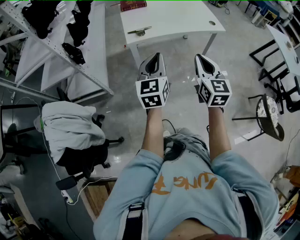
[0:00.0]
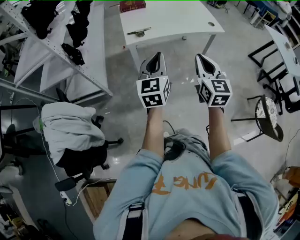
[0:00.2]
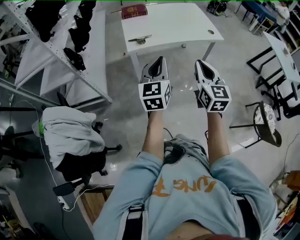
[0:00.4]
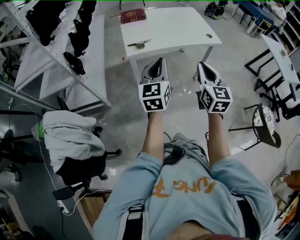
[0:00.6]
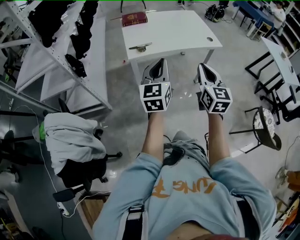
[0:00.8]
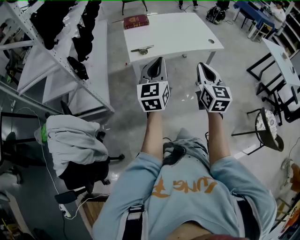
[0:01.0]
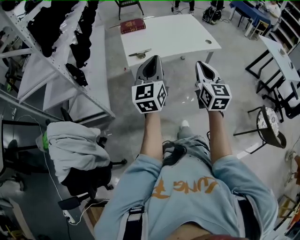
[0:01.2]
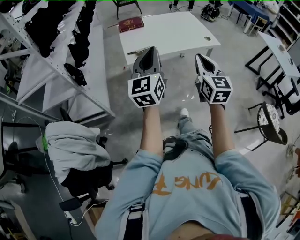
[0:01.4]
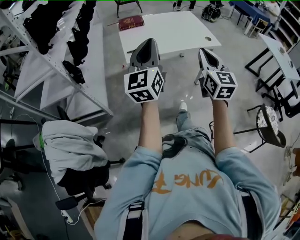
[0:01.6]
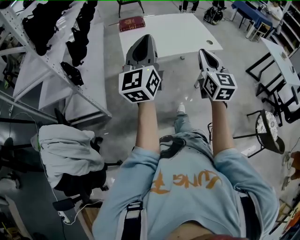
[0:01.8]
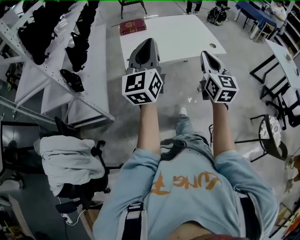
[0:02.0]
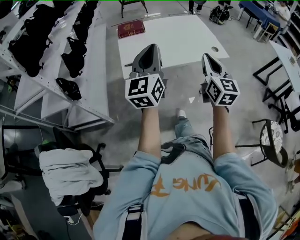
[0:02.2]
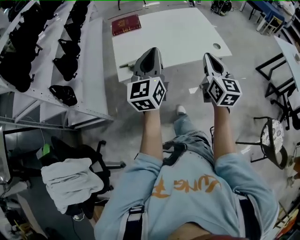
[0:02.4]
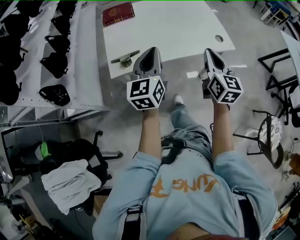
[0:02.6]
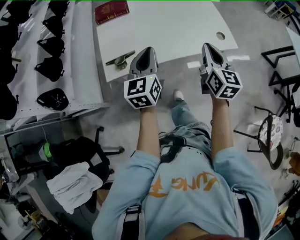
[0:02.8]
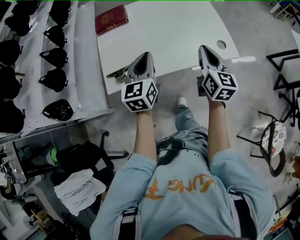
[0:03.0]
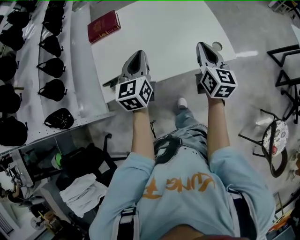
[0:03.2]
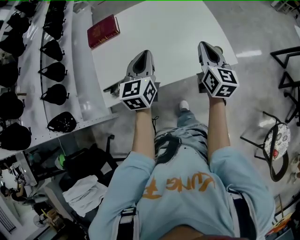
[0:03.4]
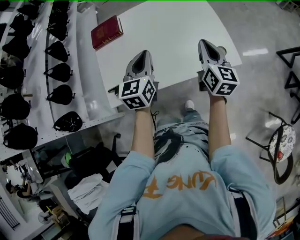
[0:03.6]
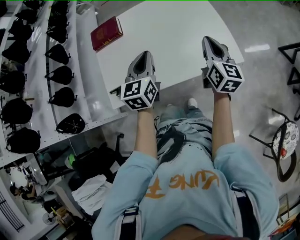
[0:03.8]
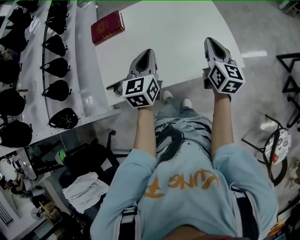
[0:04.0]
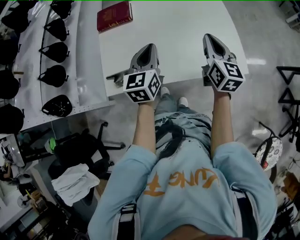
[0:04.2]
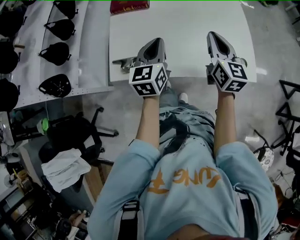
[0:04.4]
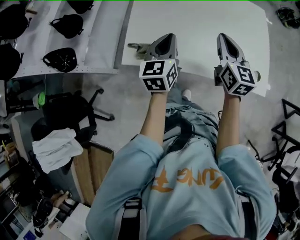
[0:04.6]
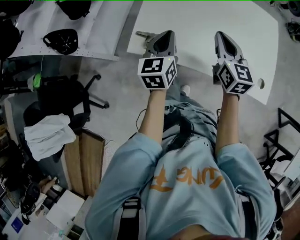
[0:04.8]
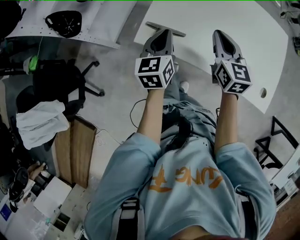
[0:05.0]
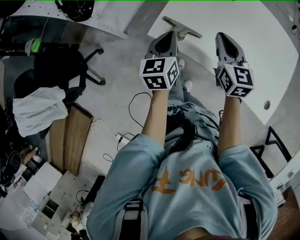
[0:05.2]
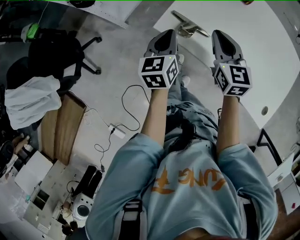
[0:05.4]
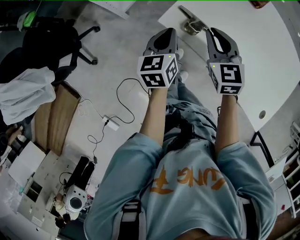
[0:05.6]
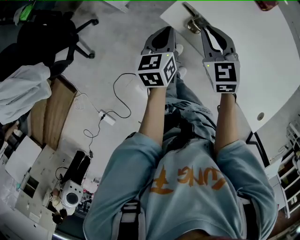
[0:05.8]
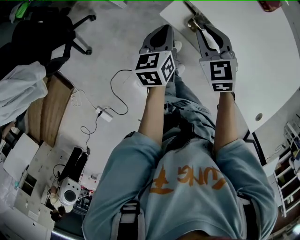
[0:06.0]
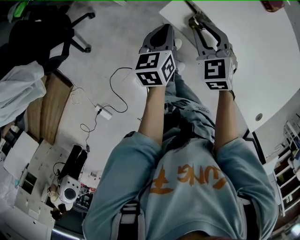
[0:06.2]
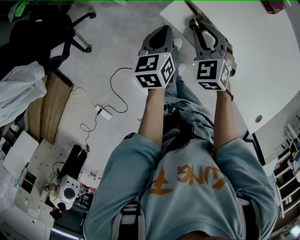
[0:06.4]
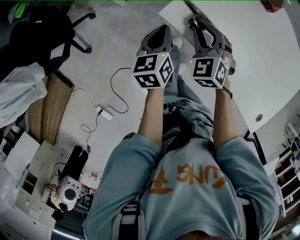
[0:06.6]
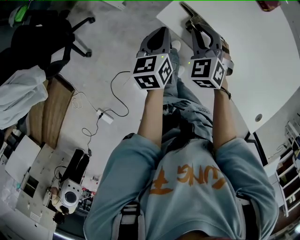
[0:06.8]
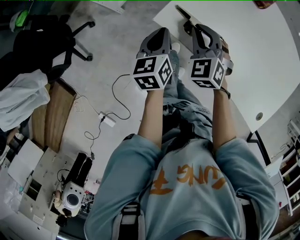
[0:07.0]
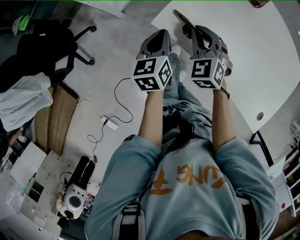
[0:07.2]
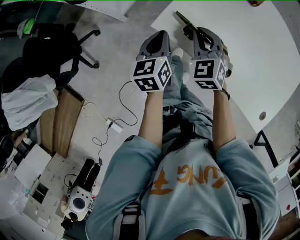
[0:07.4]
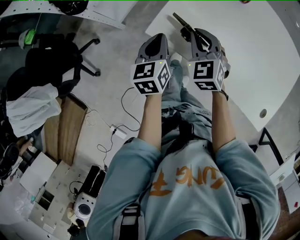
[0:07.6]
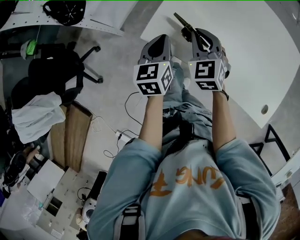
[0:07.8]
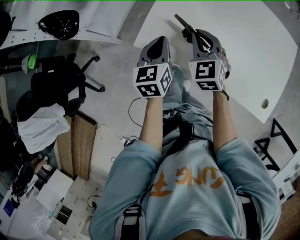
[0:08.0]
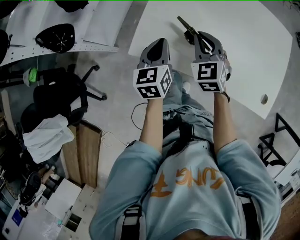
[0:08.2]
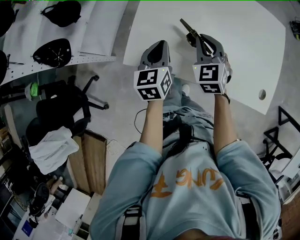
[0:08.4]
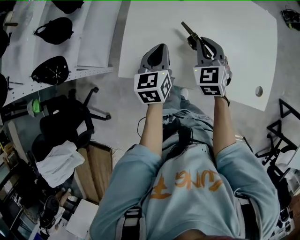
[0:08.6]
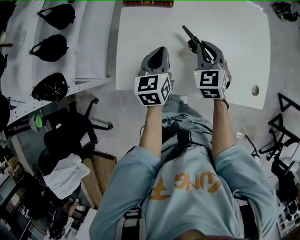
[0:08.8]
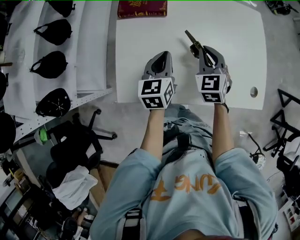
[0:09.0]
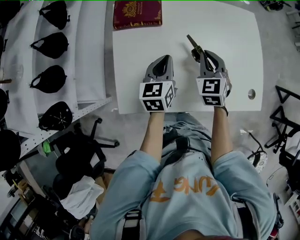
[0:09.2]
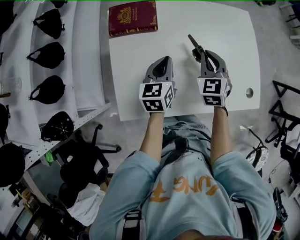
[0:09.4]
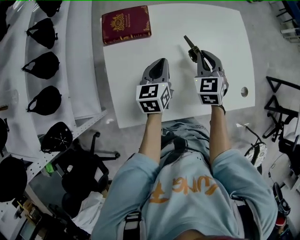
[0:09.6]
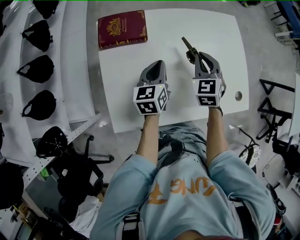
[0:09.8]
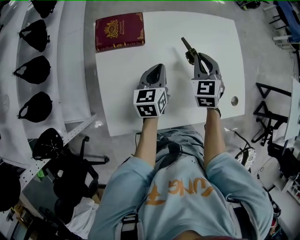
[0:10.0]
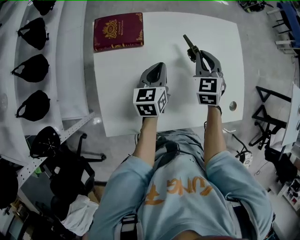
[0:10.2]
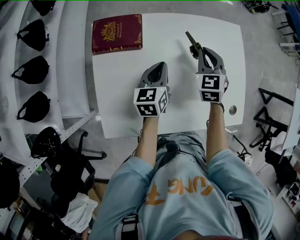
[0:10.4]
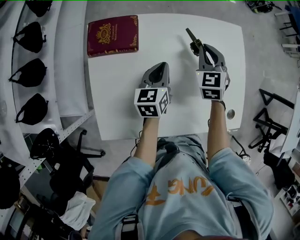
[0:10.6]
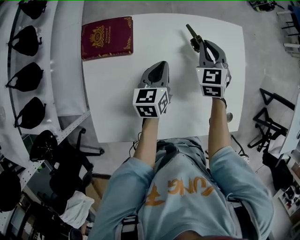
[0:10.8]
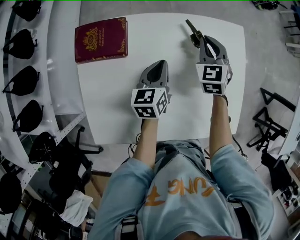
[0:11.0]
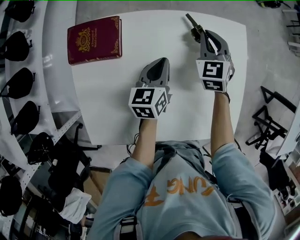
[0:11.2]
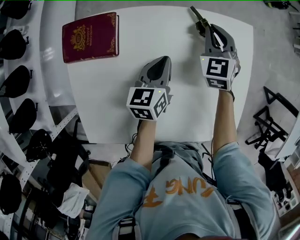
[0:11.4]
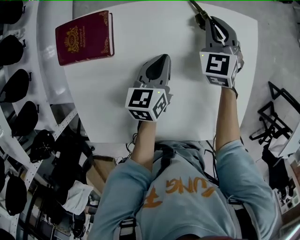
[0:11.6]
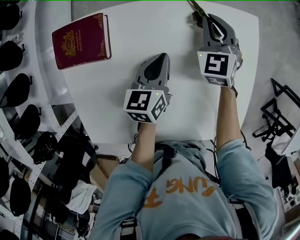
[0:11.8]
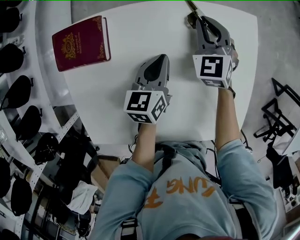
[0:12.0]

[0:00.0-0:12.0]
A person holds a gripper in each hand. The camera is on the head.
0:00.0 to 0:01.6: The right gripper travels forward and upward by roughly 10 cm, while the left gripper heads upward and forward, covering roughly 15 cm.
0:01.6 to 0:03.0: The right gripper travels forward by some 40 cm, and turns by about 20 degrees; the left gripper heads forward and downward, covering approximately 40 cm, and rotates roughly 30 degrees.
0:03.0 to 0:04.4: The left gripper travels forward by approximately 10 cm. The right gripper moves forward and to the left, some 15 cm.
0:04.4 to 0:06.0: The left gripper changes place by some 35 cm, and rotates about 50 degrees; the right gripper moves some 40 cm, and turns by roughly 70 degrees.
0:06.0 to 0:07.6: The right gripper moves roughly 5 cm. The left gripper shifts by roughly 5 cm.
0:07.6 to 0:09.0: The left gripper changes place by approximately 25 cm, and turns by about 40 degrees. The right gripper changes place by some 30 cm, and changes its angle by some 40 degrees.
0:09.0 to 0:10.4: Both grippers move forward, roughly 15 cm.
0:10.4 to 0:12.0: The left gripper moves forward, to the right and downward, about 15 cm. Meanwhile the right gripper travels forward and downward by roughly 20 cm.

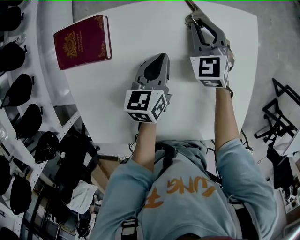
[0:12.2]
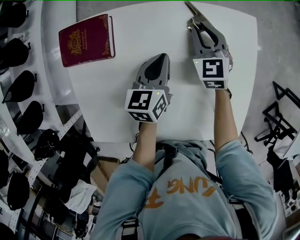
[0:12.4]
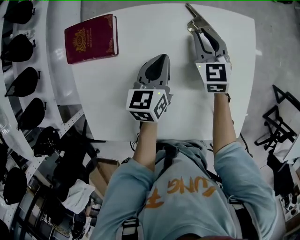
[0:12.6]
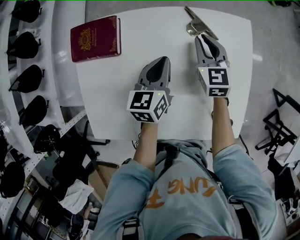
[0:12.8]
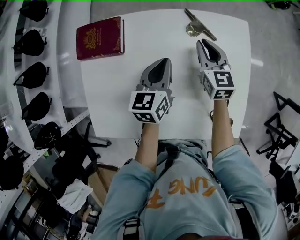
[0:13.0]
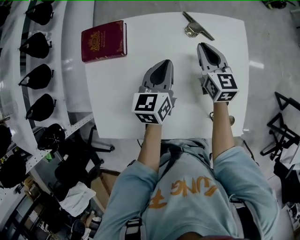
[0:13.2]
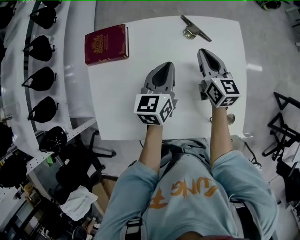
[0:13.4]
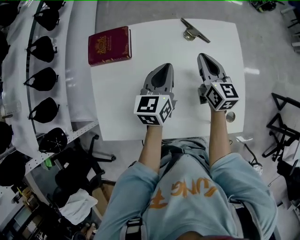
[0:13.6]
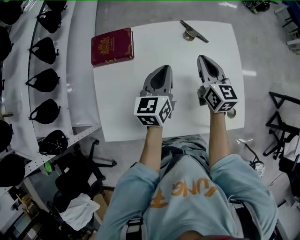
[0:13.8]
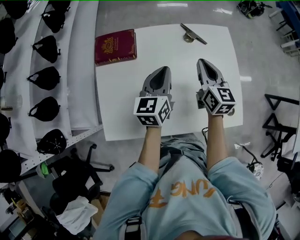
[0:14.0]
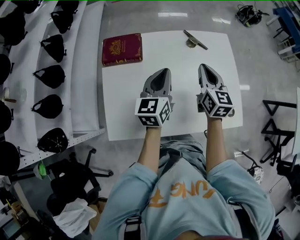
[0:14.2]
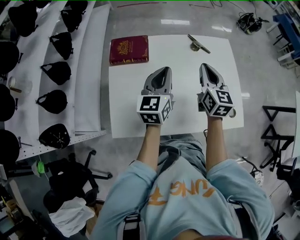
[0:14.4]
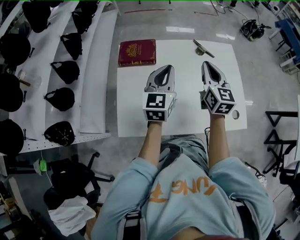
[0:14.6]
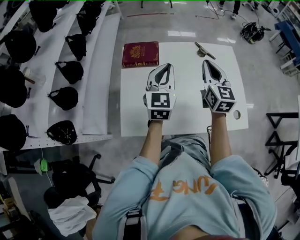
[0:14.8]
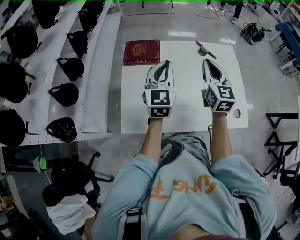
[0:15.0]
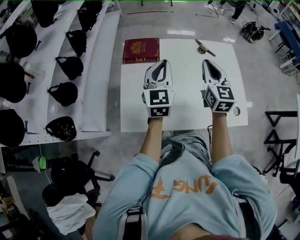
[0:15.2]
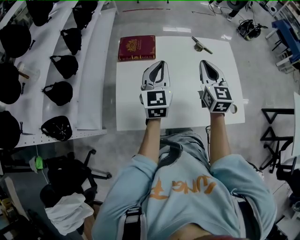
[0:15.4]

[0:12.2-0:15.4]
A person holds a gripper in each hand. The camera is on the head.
0:12.2 to 0:13.8: The right gripper travels backward and upward by roughly 20 cm, and rotates around the line of its fingers by approximately 40 degrees, clockwise from behind. Meanwhile the left gripper is displaced upward and backward by roughly 15 cm.
0:13.8 to 0:15.4: The right gripper moves backward, upward and to the left, roughly 15 cm; the left gripper is displaced to the left, upward and backward by about 20 cm, and changes its angle by roughly 30 degrees.

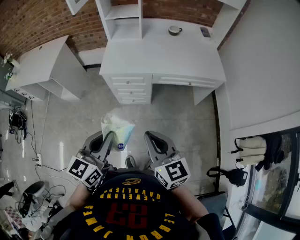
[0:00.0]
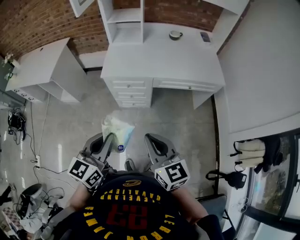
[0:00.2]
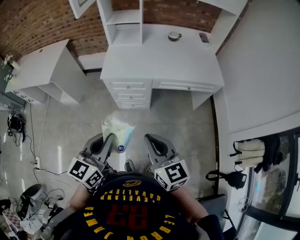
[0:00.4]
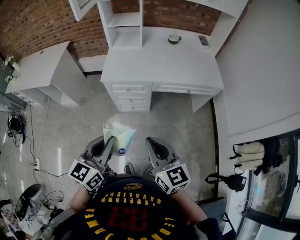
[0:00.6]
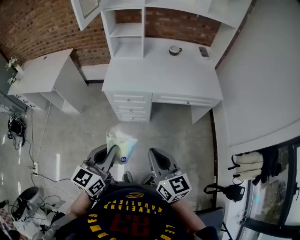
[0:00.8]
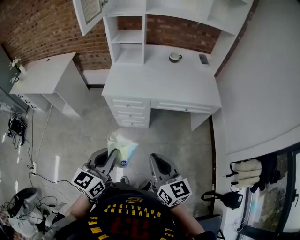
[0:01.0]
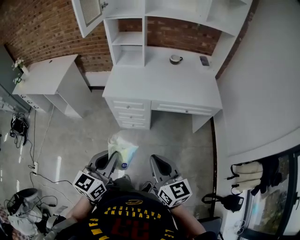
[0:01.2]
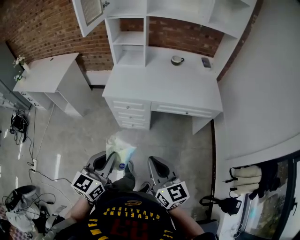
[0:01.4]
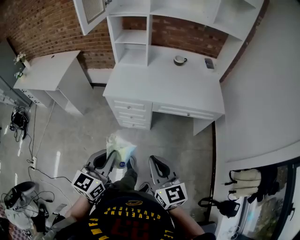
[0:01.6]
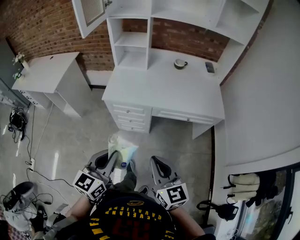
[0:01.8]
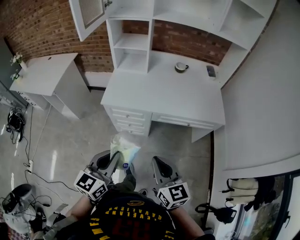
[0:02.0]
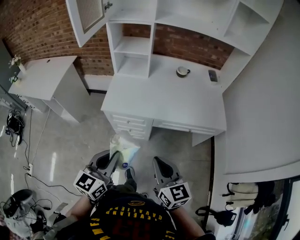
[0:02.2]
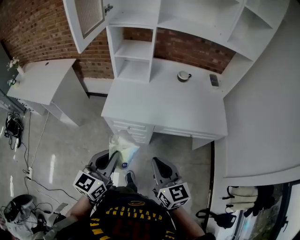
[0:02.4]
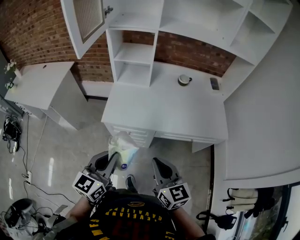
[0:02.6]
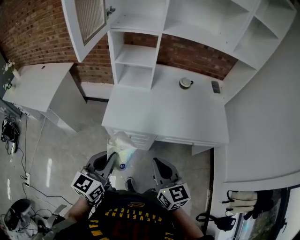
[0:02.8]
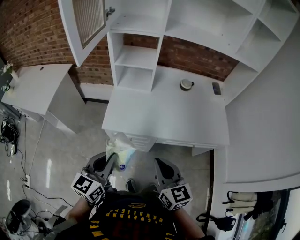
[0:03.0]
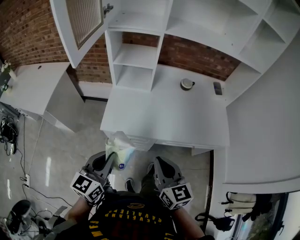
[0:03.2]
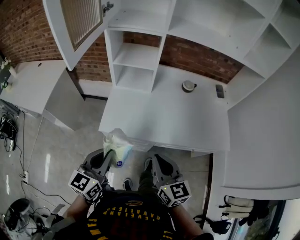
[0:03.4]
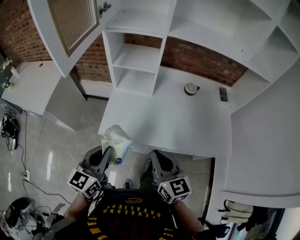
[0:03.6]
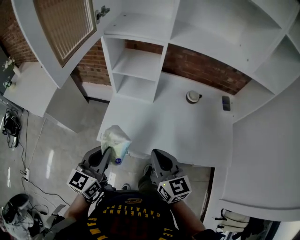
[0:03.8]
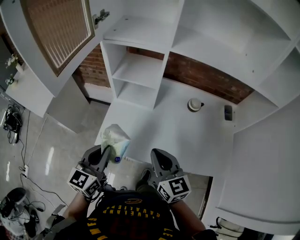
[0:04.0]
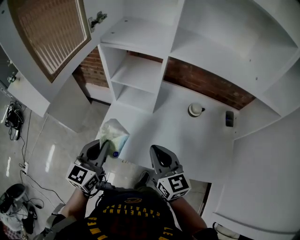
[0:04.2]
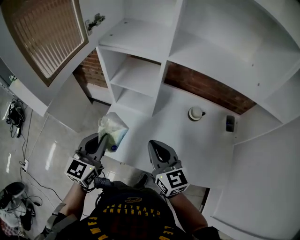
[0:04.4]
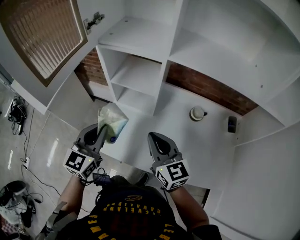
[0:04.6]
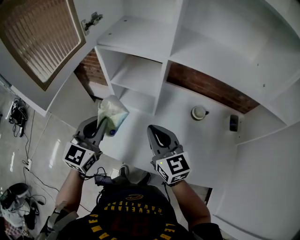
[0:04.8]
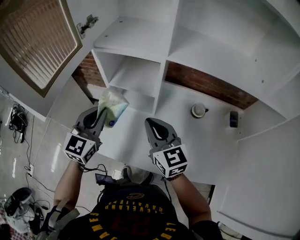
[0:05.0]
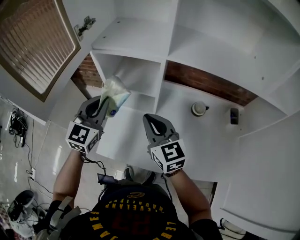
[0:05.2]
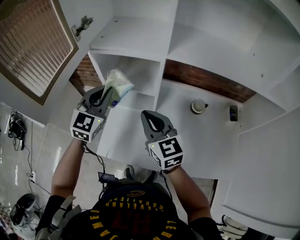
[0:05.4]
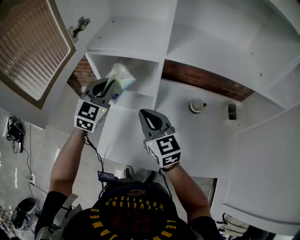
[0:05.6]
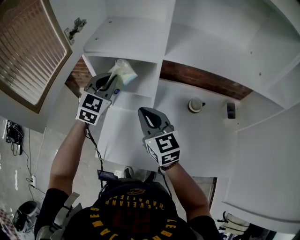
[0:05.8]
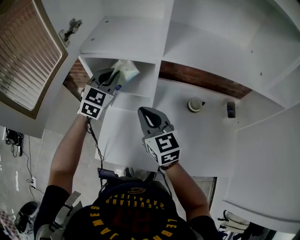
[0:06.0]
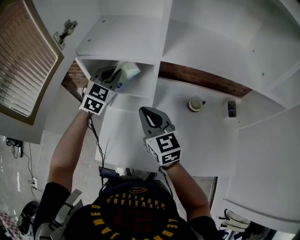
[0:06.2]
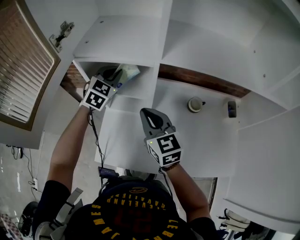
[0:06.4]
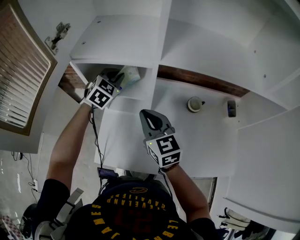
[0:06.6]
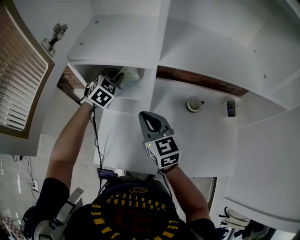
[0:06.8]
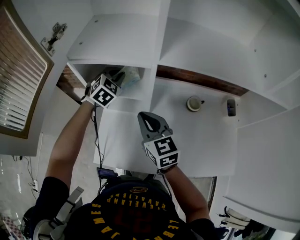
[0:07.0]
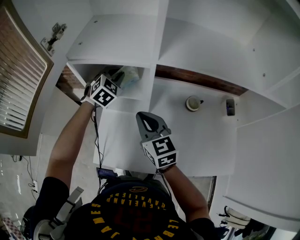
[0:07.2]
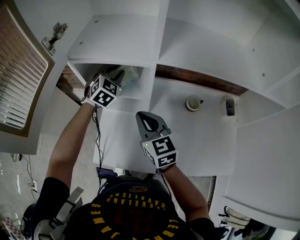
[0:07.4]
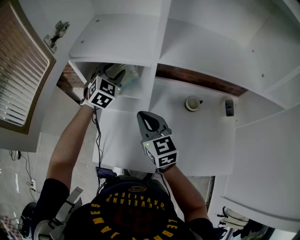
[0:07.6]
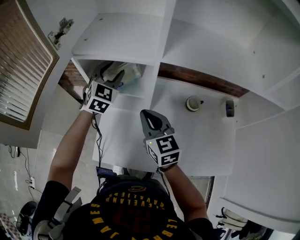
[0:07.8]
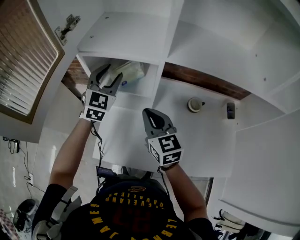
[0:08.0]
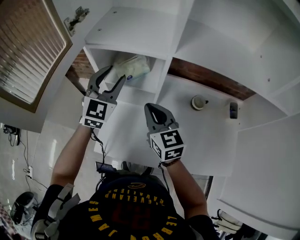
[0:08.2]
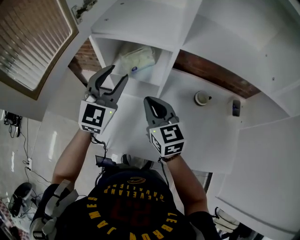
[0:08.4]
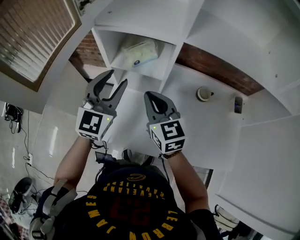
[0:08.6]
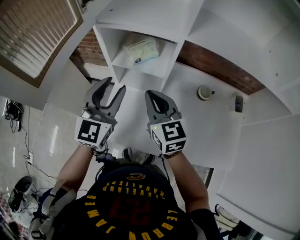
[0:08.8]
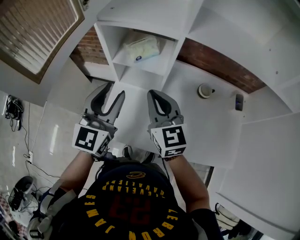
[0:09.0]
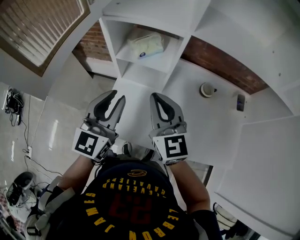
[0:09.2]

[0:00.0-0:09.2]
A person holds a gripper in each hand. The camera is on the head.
0:00.0 to 0:01.6: The right gripper shifts roughly 5 cm to the right.
0:01.6 to 0:03.0: Both grippers move forward, about 25 cm.
0:03.0 to 0:04.6: The grippers both shift forward by about 30 cm. The left gripper turns by about 20 degrees.
0:04.6 to 0:06.2: The right gripper travels forward by some 15 cm. Meanwhile the left gripper heads forward, covering roughly 30 cm, and changes its angle by about 30 degrees.
0:06.2 to 0:07.6: The left gripper opens up.
0:07.6 to 0:09.2: The left gripper travels backward by about 30 cm, and changes its angle by about 40 degrees. The right gripper heads backward and upward, covering some 10 cm.
